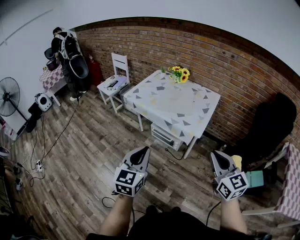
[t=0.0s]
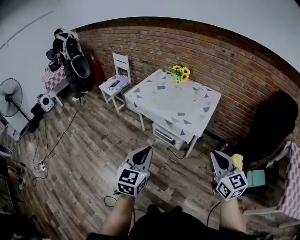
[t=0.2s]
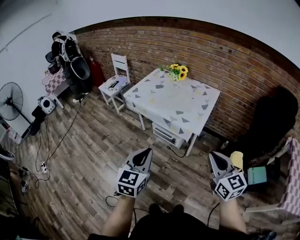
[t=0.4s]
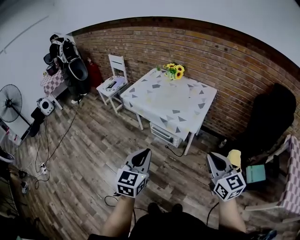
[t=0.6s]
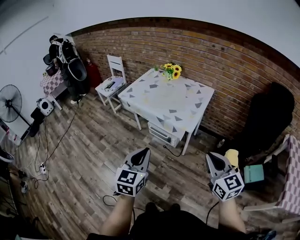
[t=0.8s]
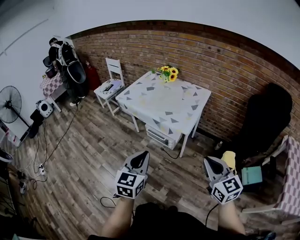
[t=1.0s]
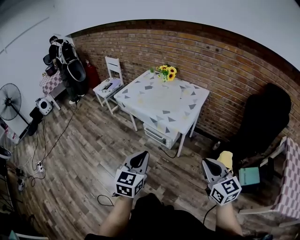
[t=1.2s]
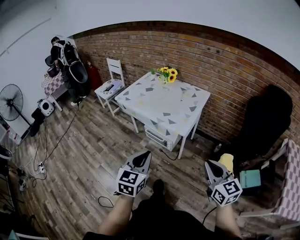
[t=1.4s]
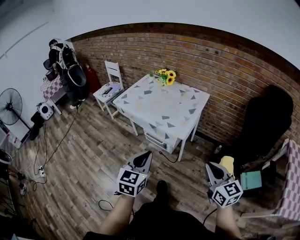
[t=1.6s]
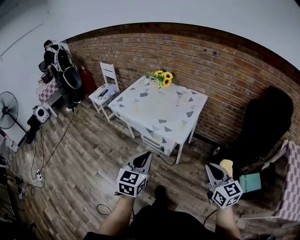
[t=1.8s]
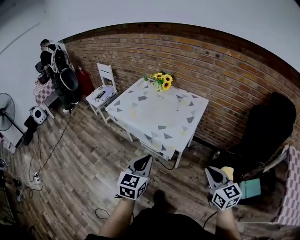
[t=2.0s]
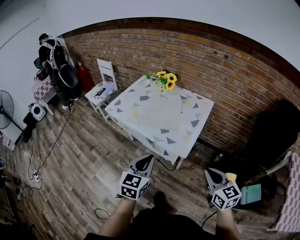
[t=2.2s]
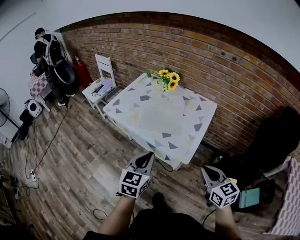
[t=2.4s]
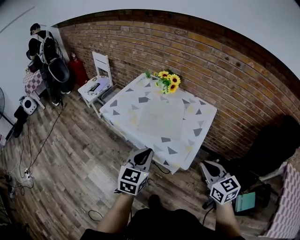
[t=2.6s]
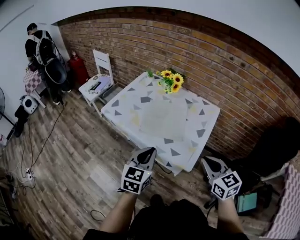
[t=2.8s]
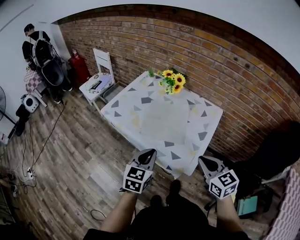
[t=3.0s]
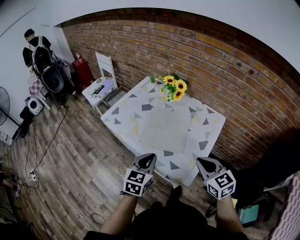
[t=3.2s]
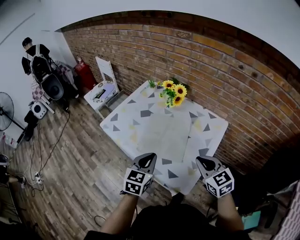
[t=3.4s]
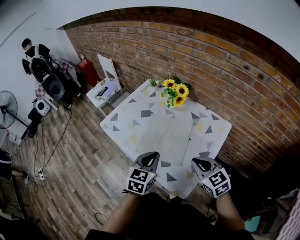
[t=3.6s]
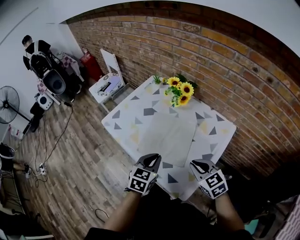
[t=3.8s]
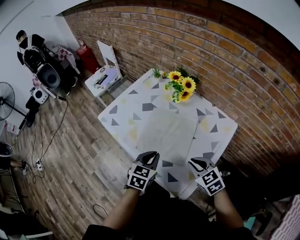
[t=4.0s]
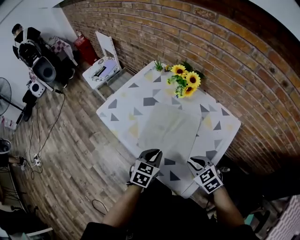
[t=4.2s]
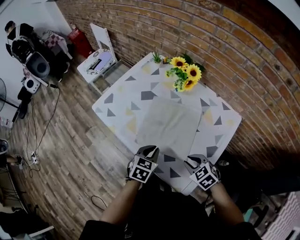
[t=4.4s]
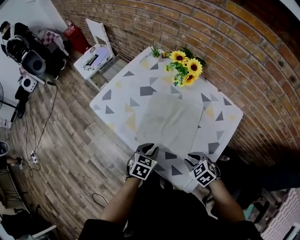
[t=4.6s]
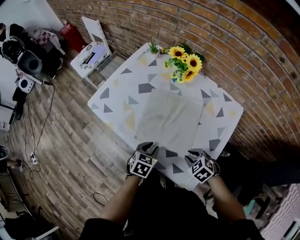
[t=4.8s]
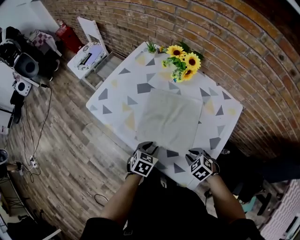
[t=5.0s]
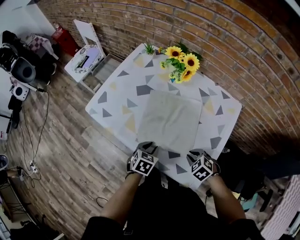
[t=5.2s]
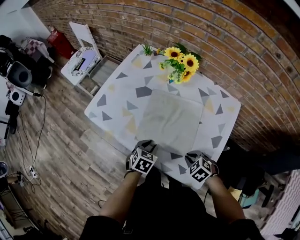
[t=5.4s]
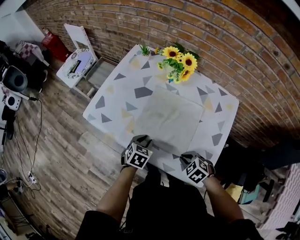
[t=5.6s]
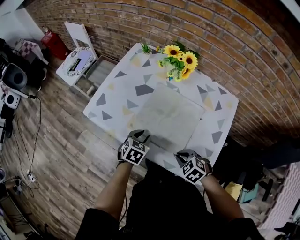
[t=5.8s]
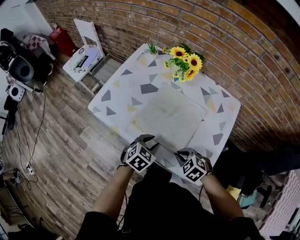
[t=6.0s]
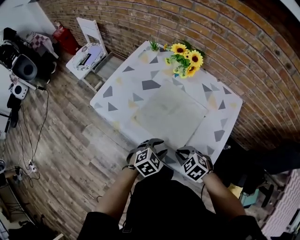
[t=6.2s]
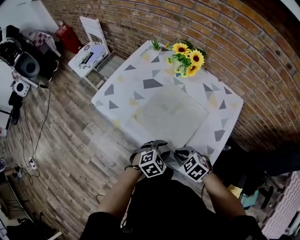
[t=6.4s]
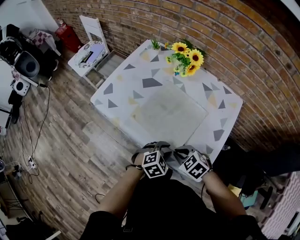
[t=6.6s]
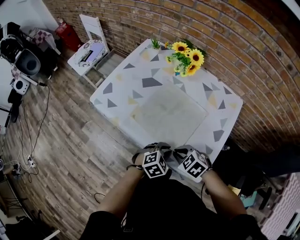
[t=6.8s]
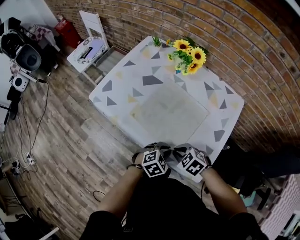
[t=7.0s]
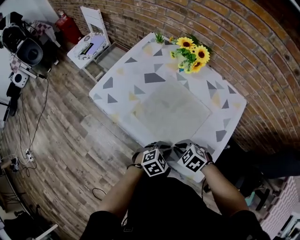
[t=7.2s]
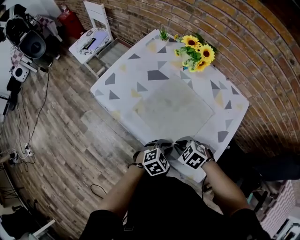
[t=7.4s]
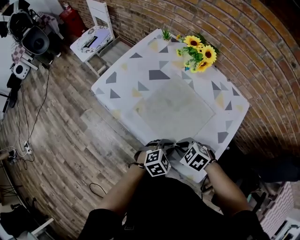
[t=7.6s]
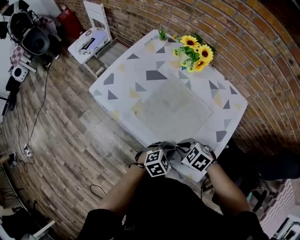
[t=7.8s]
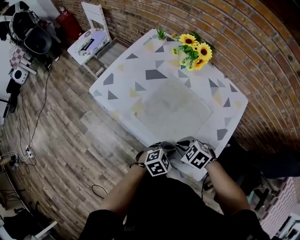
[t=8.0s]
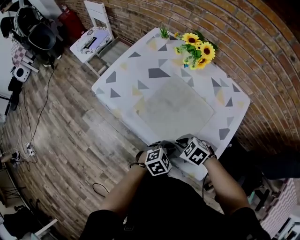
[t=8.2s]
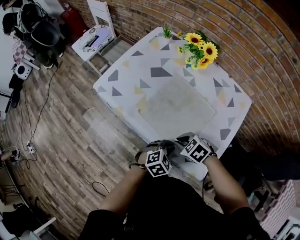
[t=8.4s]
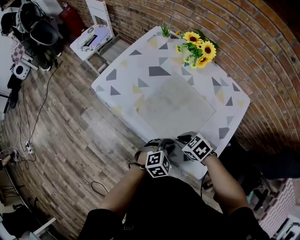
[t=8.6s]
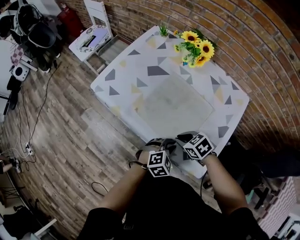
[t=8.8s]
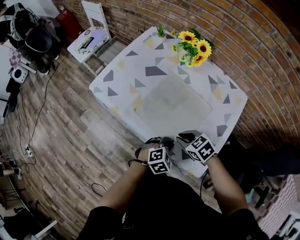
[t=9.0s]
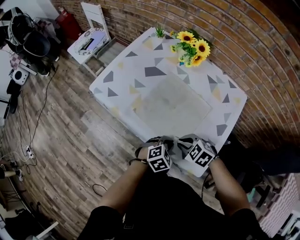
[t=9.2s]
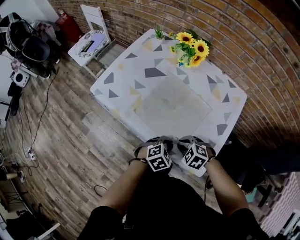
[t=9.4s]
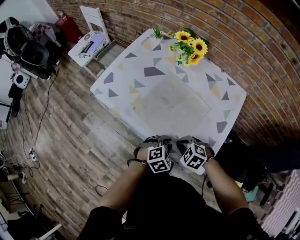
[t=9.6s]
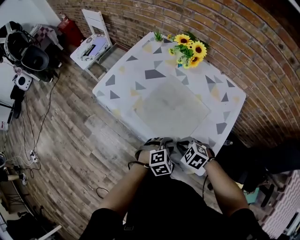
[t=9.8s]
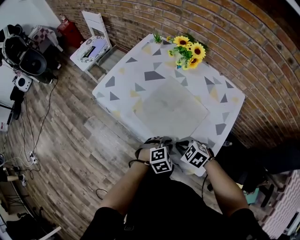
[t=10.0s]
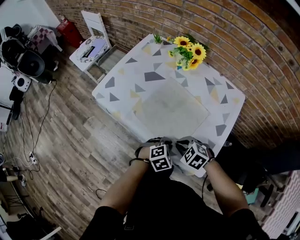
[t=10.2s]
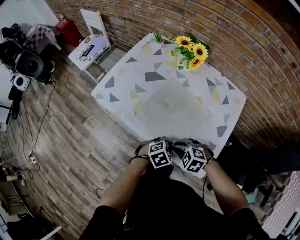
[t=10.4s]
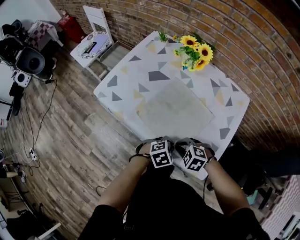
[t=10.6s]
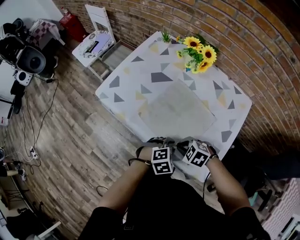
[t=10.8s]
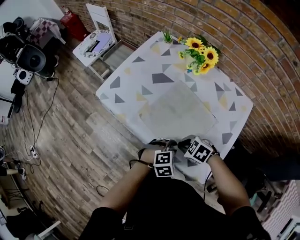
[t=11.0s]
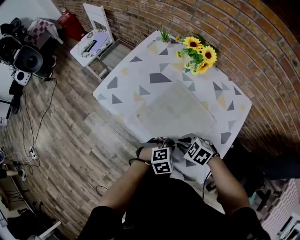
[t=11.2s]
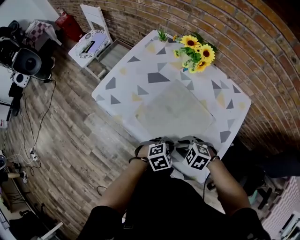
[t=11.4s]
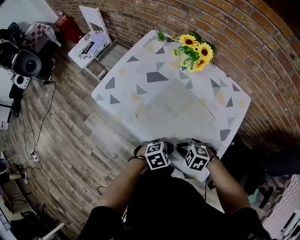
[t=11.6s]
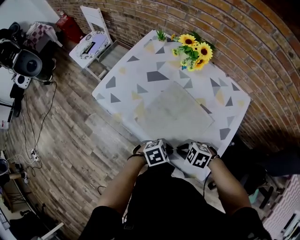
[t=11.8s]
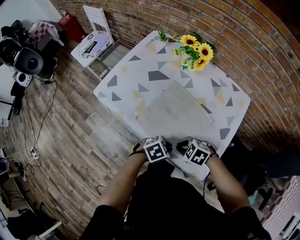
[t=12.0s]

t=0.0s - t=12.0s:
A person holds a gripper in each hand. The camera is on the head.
t=0.0s - t=1.6s: The right gripper travels to the right and downward by some 15 cm; the left gripper goes some 15 cm to the right.
t=1.6s - t=3.0s: The two grippers go some 35 cm forward.
t=3.0s - t=4.4s: Both grippers travel together downward and forward, roughly 25 cm. The left gripper rotates some 20 degrees; the right gripper points its fingers about 30 degrees further downward, and opens its fingers.
t=4.4s - t=6.0s: The right gripper moves to the left, approximately 10 cm; the left gripper swivels roughly 30 degrees, and opens.
t=6.0s - t=7.6s: The left gripper shifts by roughly 10 cm.
t=9.0s - t=10.4s: The right gripper changes its angle by roughly 30 degrees.
t=10.4s - t=12.0s: The grippers make only small movements.

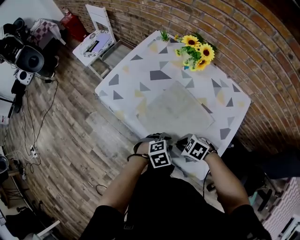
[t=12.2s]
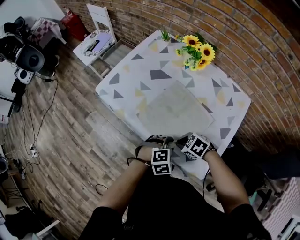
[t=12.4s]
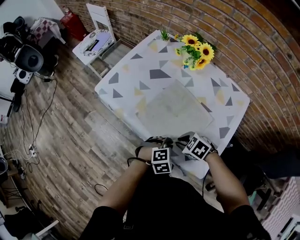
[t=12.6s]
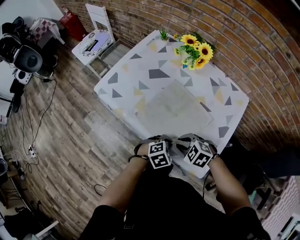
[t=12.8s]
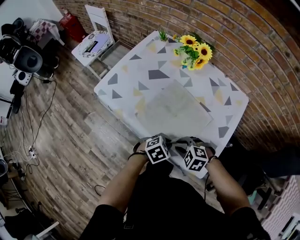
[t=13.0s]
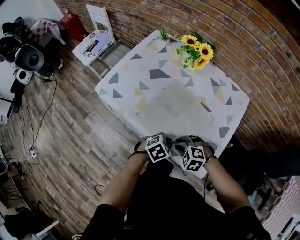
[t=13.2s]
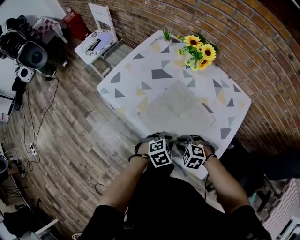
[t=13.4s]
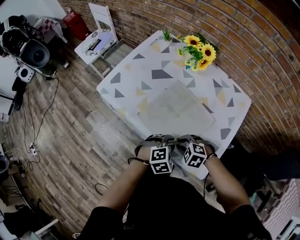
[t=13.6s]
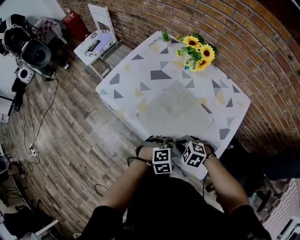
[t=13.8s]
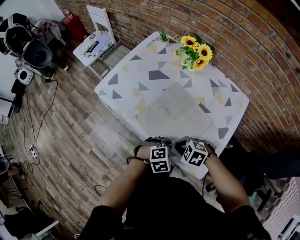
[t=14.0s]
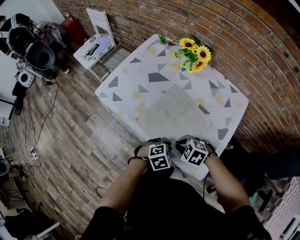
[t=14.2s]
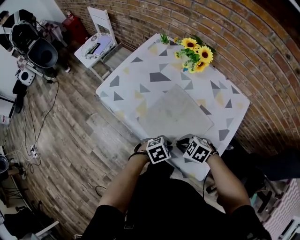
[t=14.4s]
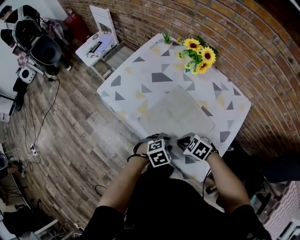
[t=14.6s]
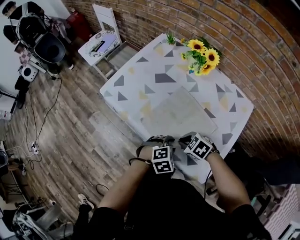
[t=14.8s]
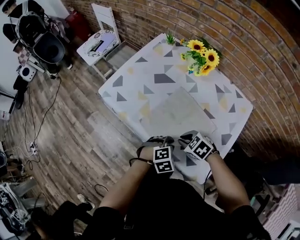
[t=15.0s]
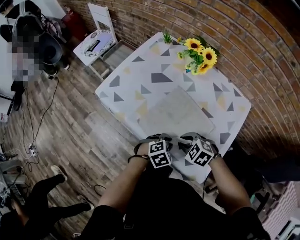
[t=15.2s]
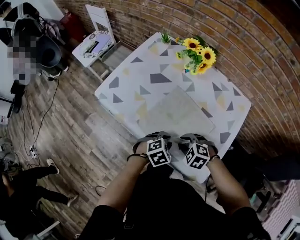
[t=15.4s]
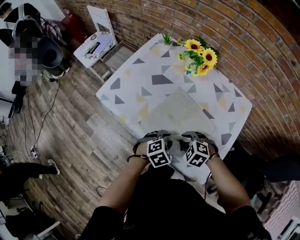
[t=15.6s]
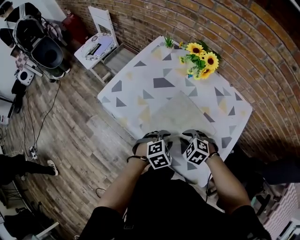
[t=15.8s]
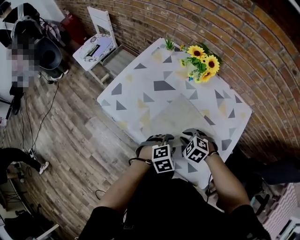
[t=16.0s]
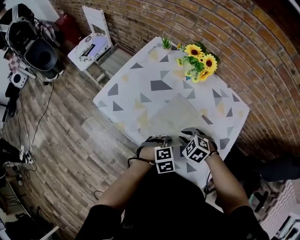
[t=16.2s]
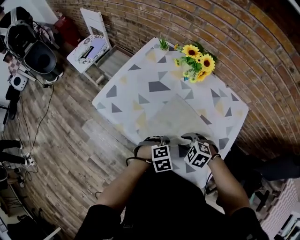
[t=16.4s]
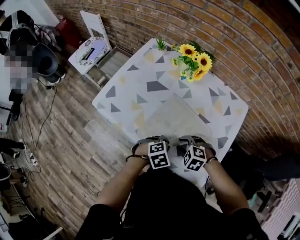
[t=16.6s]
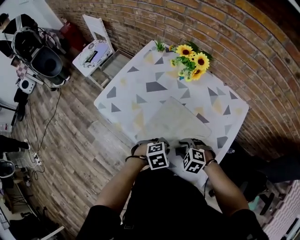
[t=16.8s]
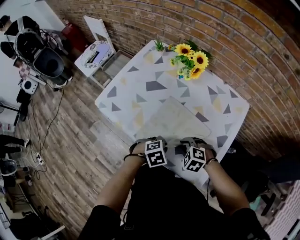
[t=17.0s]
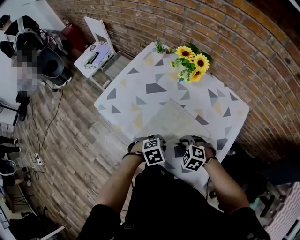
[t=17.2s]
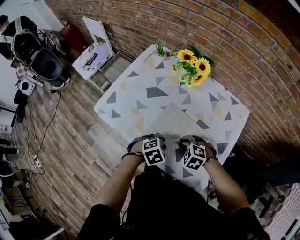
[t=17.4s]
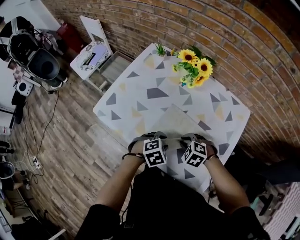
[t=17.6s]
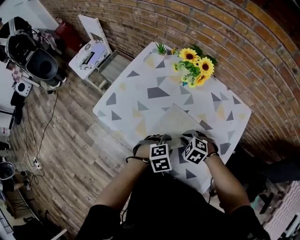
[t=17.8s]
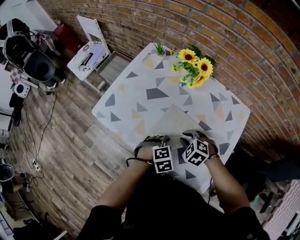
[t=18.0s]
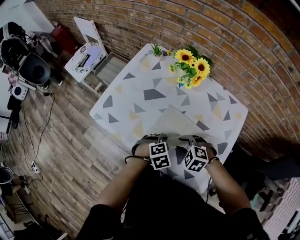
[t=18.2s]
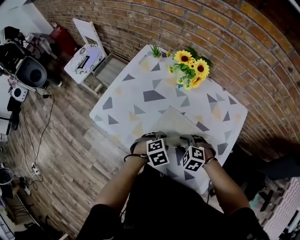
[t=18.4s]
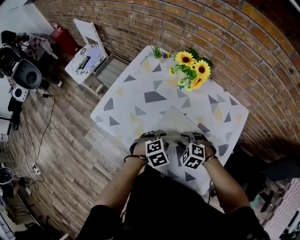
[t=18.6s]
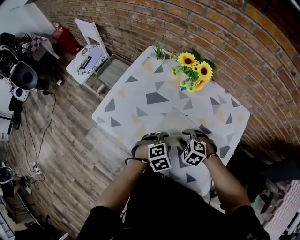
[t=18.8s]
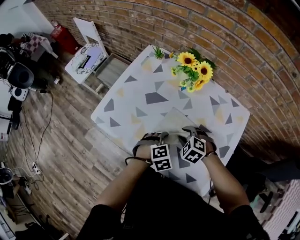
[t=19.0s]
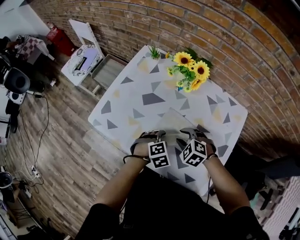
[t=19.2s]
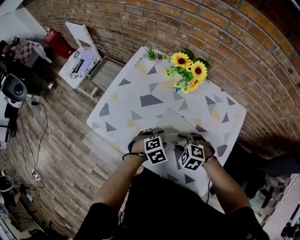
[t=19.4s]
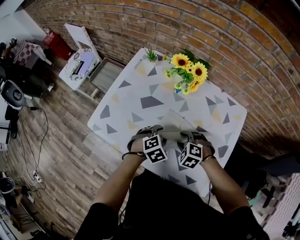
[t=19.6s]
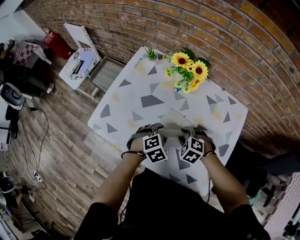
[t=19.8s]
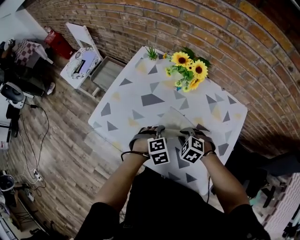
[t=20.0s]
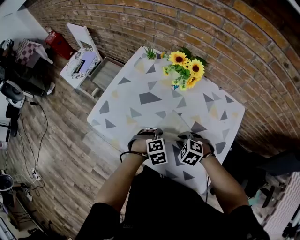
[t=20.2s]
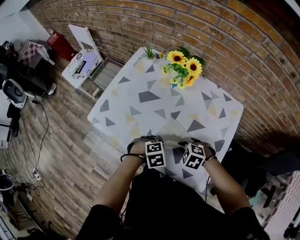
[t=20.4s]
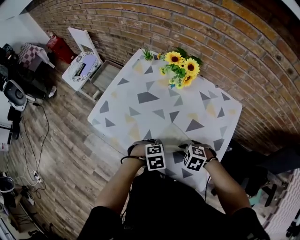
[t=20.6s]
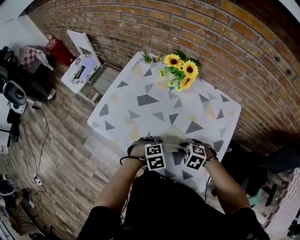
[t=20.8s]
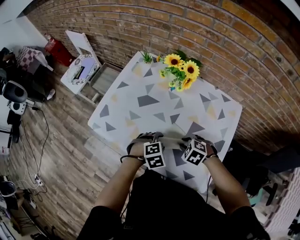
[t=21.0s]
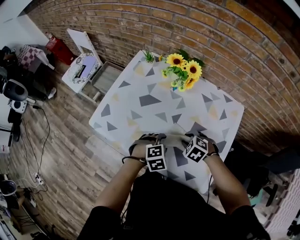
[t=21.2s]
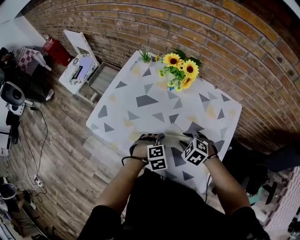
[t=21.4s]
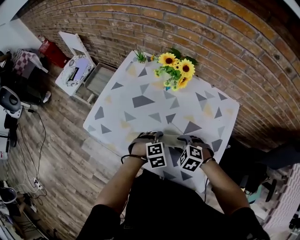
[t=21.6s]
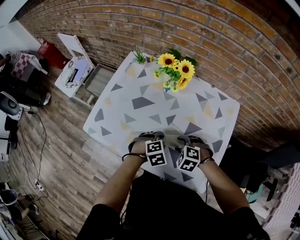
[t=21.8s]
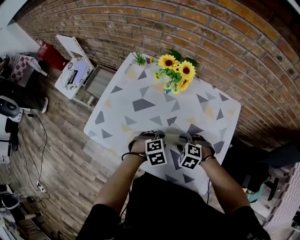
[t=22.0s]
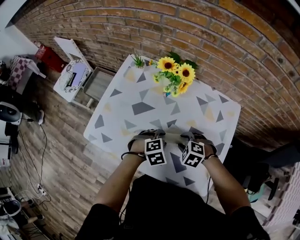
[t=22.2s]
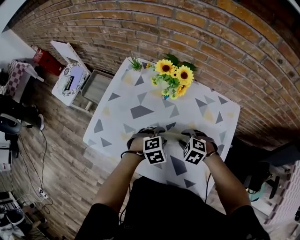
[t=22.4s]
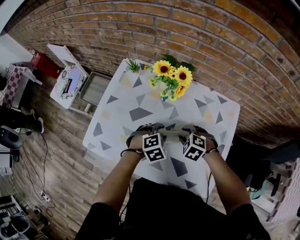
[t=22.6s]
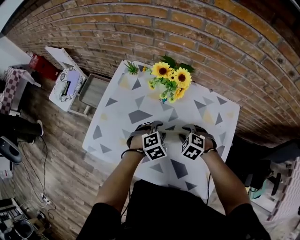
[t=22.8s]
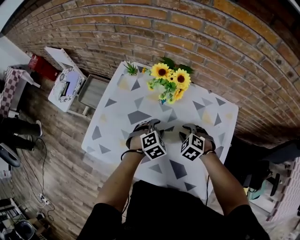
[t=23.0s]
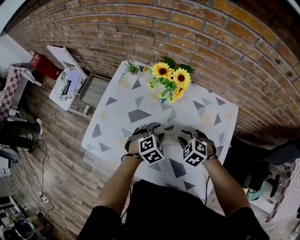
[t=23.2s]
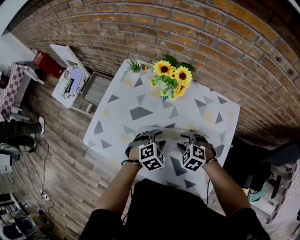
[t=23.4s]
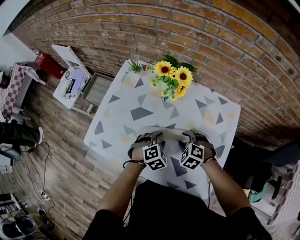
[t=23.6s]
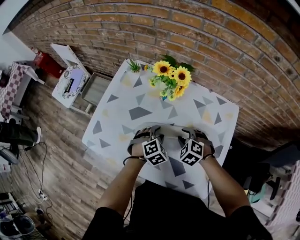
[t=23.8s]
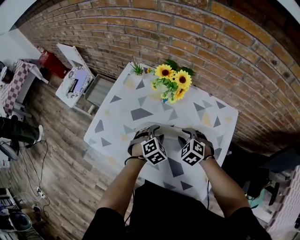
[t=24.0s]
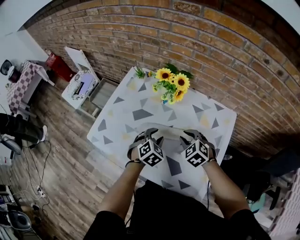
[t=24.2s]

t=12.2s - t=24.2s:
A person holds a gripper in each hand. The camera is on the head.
t=12.2s - t=13.8s: The right gripper opens and closes again.
t=15.2s - t=16.6s: The left gripper opens and closes again.
t=16.6s - t=18.2s: The left gripper ends up about 5 cm from where it was, and opens its fingers.
t=18.2s - t=19.8s: The two grippers go approximately 10 cm forward.
t=19.8s - t=21.2s: The left gripper closes and opens again.
t=21.2s - t=22.6s: The right gripper travels forward by roughly 10 cm; the left gripper shifts approximately 10 cm forward.
t=22.6s - t=24.2s: The left gripper swivels roughly 30 degrees, while the right gripper heads upward, covering approximately 5 cm.
